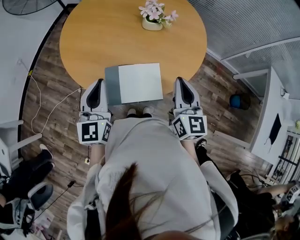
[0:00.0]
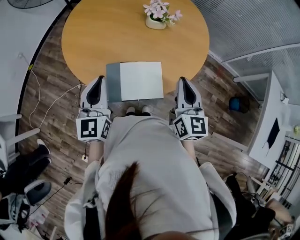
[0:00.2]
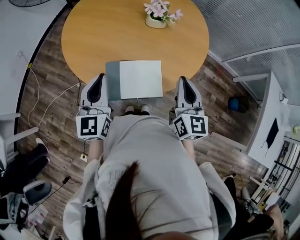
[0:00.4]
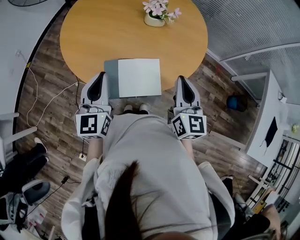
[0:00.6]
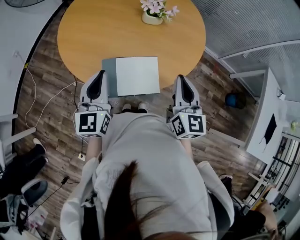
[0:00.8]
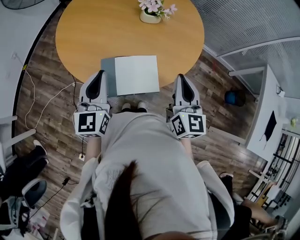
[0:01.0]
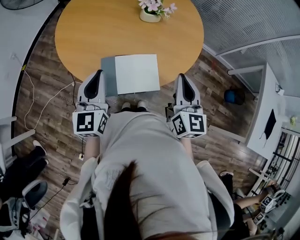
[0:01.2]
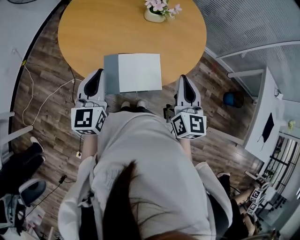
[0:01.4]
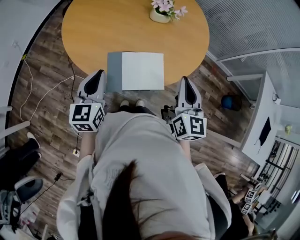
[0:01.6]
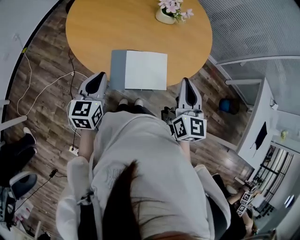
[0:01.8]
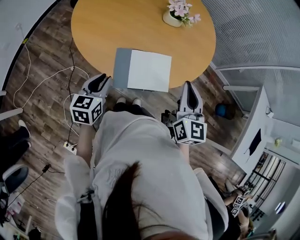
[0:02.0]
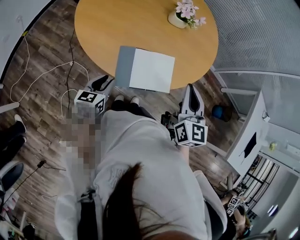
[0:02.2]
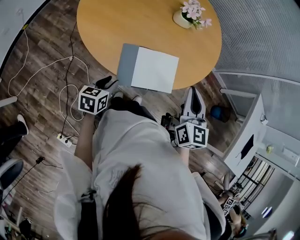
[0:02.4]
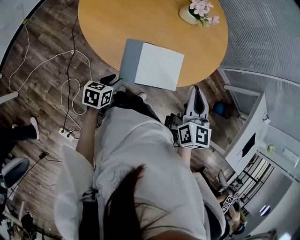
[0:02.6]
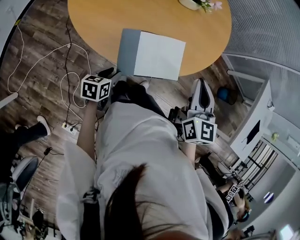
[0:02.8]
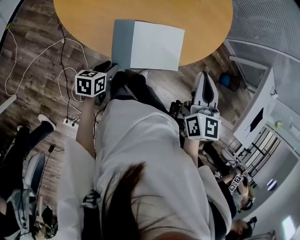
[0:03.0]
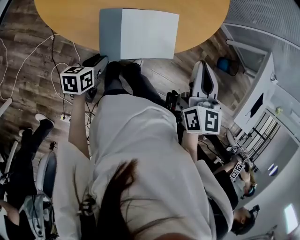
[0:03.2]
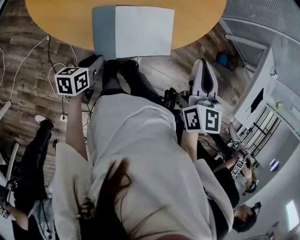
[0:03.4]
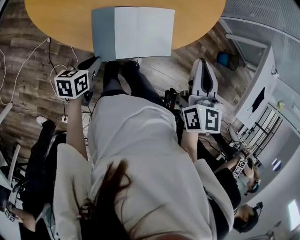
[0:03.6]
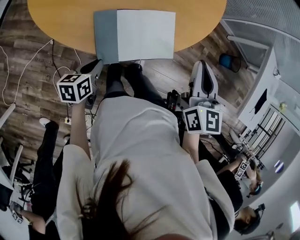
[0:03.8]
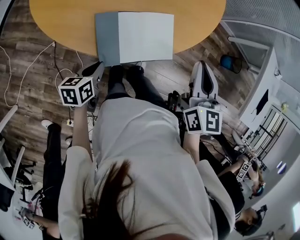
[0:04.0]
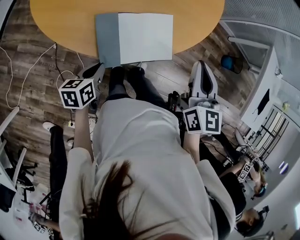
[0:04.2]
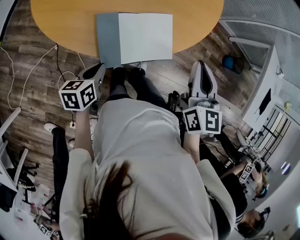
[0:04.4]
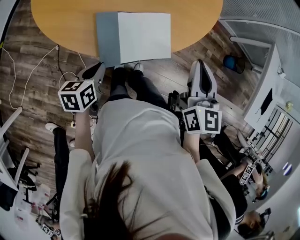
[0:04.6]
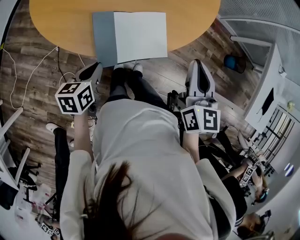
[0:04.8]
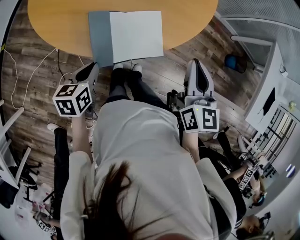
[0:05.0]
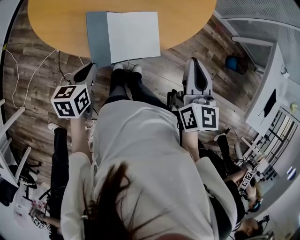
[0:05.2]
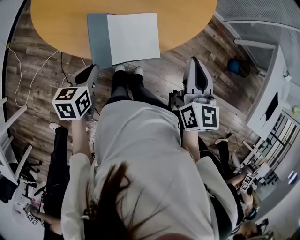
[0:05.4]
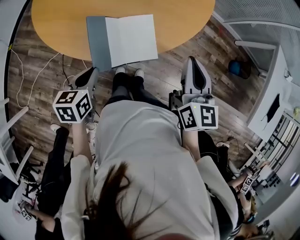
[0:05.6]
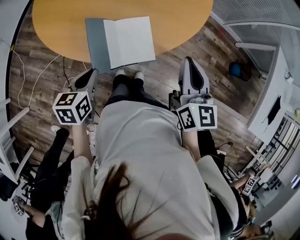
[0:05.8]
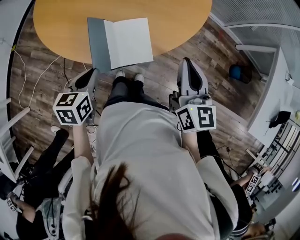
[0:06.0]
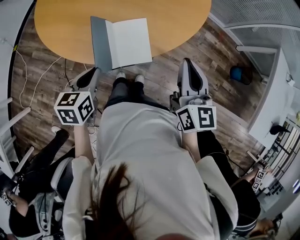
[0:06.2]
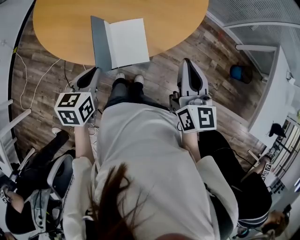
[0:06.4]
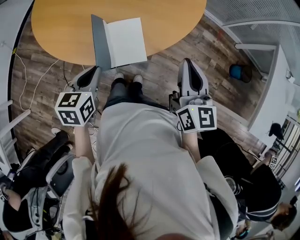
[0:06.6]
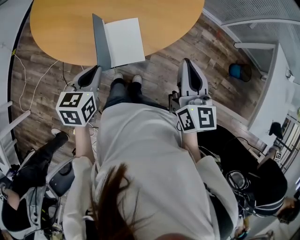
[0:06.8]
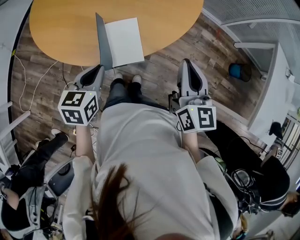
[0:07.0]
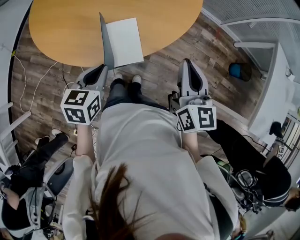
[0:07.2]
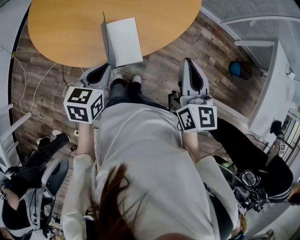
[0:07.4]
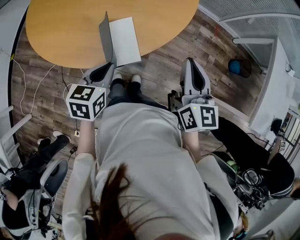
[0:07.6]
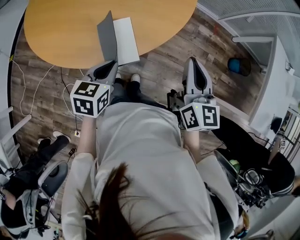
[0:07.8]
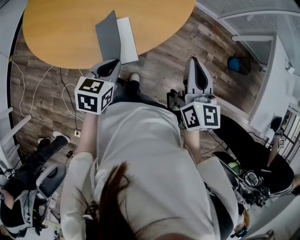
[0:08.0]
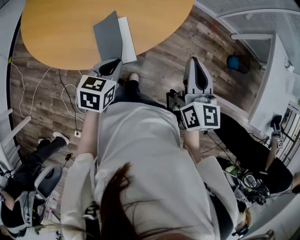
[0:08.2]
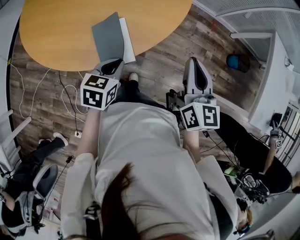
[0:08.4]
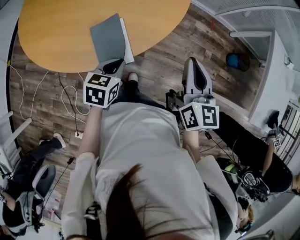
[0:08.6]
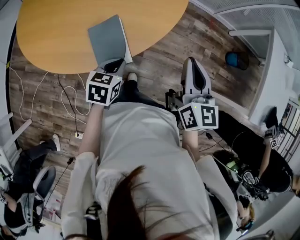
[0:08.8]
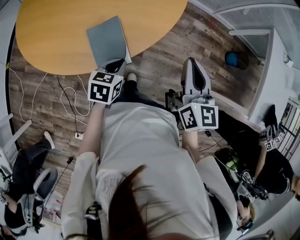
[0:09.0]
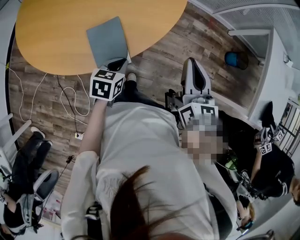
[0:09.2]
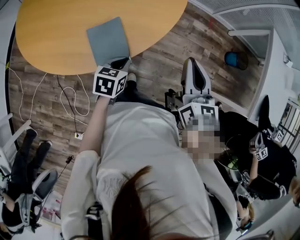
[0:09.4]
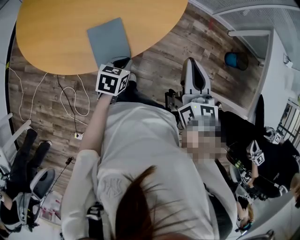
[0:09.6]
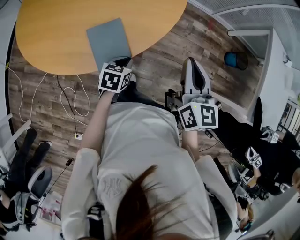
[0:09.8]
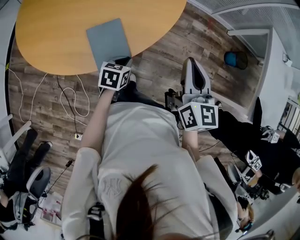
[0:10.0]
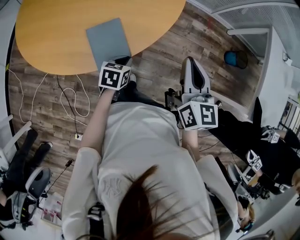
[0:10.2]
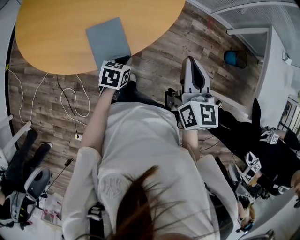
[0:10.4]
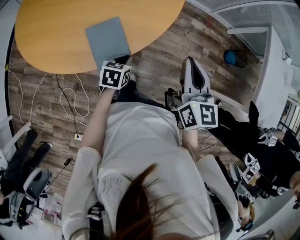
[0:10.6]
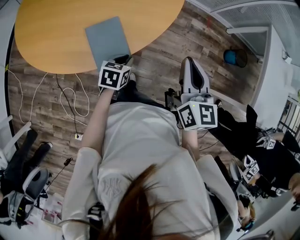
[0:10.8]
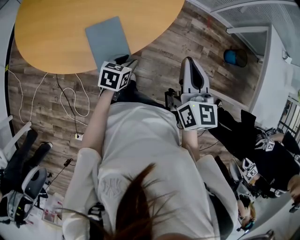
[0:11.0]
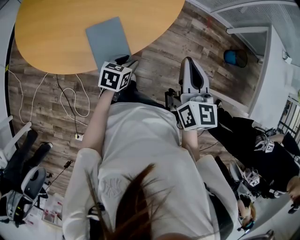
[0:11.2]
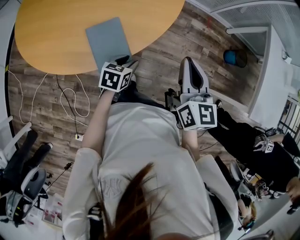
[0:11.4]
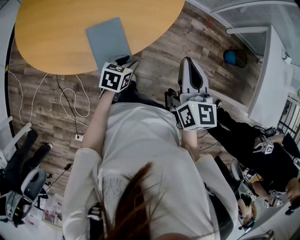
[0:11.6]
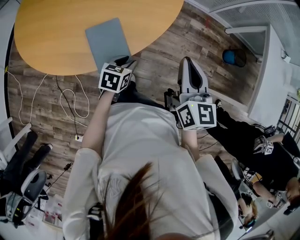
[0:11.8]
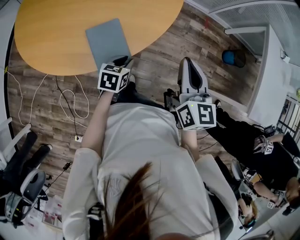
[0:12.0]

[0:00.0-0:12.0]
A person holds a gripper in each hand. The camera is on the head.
0:00.0 to 0:01.6: The left gripper shifts some 5 cm downward.
0:01.6 to 0:03.0: The left gripper shifts about 25 cm downward, rotates roughly 50 degrees, and opens up, while the right gripper shifts approximately 5 cm downward.
0:03.0 to 0:04.4: The left gripper goes roughly 5 cm upward, and closes.
0:04.4 to 0:06.0: The right gripper heads to the right, covering some 10 cm, while the left gripper travels upward and to the right by about 10 cm.
0:06.0 to 0:07.6: The left gripper shifts roughly 10 cm to the right. The right gripper shifts approximately 5 cm to the right.
0:07.6 to 0:09.0: The left gripper is displaced downward and to the right by some 10 cm.
0:09.0 to 0:10.4: The left gripper shifts approximately 5 cm downward.
0:10.4 to 0:12.0: There are only small adjustments of the grippers.

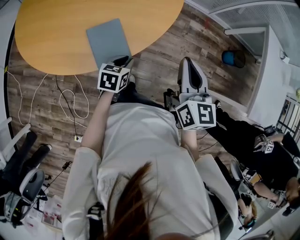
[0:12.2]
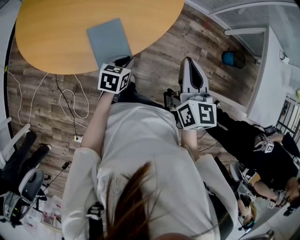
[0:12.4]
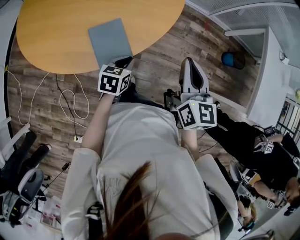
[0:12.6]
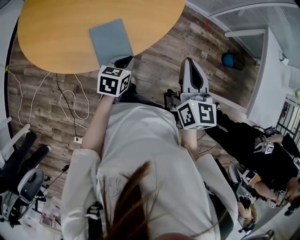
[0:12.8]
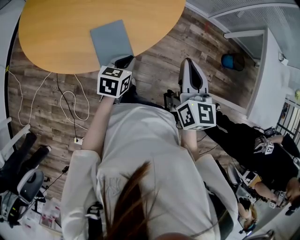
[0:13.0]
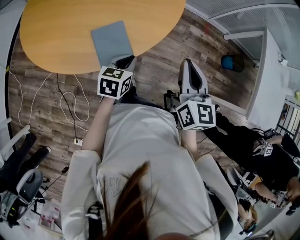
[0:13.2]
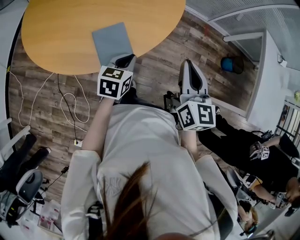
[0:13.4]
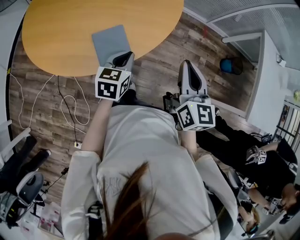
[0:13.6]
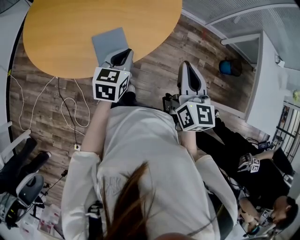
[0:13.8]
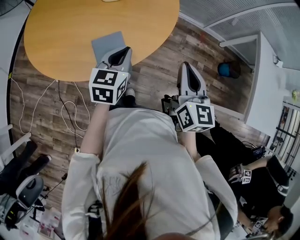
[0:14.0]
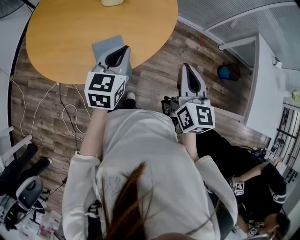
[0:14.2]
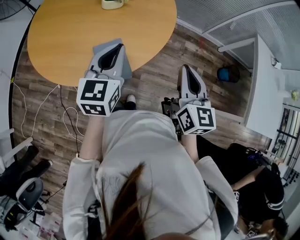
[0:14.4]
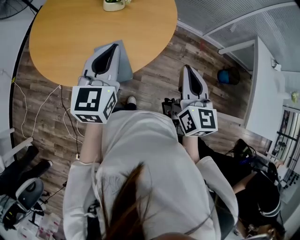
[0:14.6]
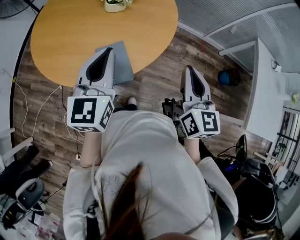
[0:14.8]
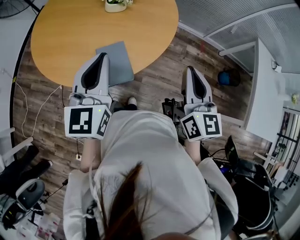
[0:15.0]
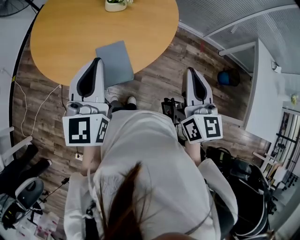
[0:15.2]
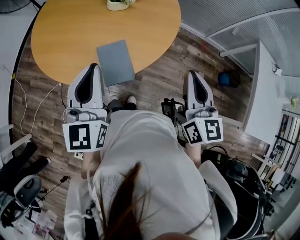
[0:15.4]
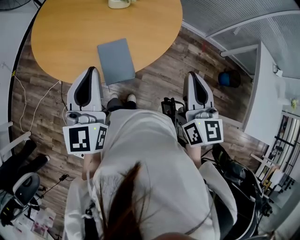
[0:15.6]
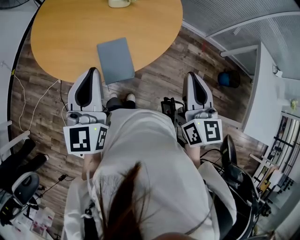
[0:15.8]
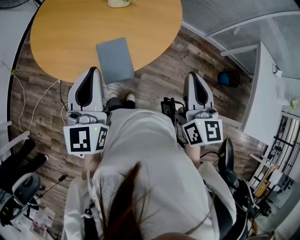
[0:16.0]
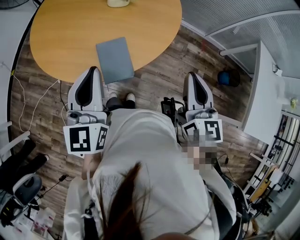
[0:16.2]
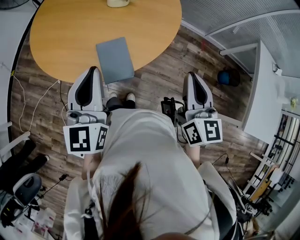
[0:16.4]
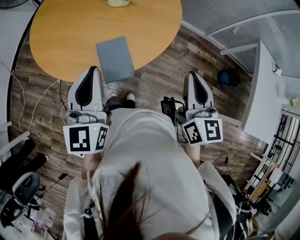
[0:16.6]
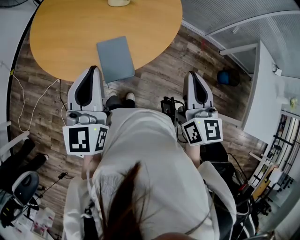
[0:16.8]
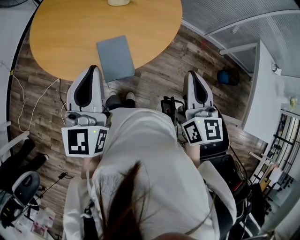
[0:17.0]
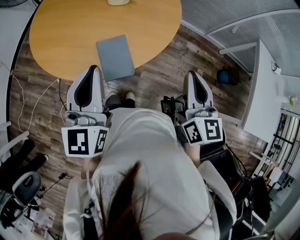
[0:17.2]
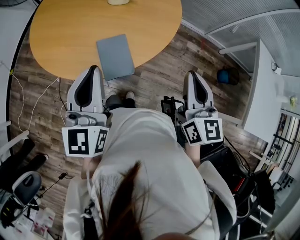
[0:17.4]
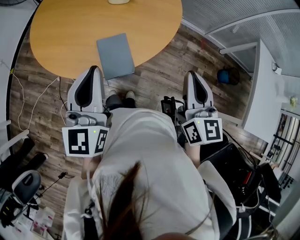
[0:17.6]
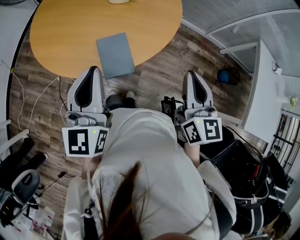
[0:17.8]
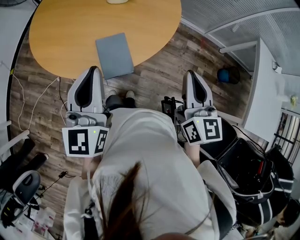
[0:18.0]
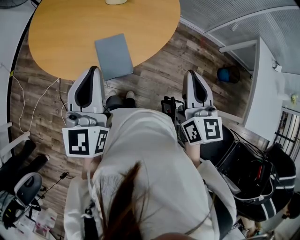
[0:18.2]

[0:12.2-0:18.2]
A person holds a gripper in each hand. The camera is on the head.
0:12.2 to 0:13.8: The left gripper goes about 15 cm upward, and changes its angle by approximately 20 degrees.
0:13.8 to 0:15.2: The left gripper is displaced upward and to the left by approximately 20 cm, and swivels some 30 degrees. Meanwhile the right gripper moves upward, approximately 10 cm.
0:15.2 to 0:18.2: The grippers stay close to where they were, moving slightly.

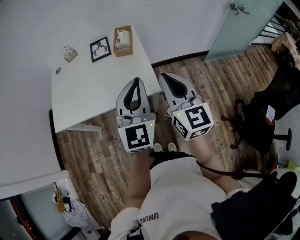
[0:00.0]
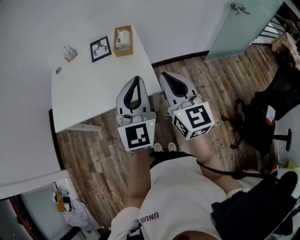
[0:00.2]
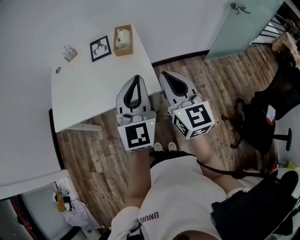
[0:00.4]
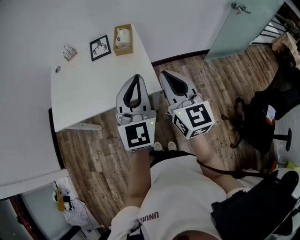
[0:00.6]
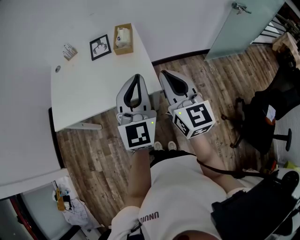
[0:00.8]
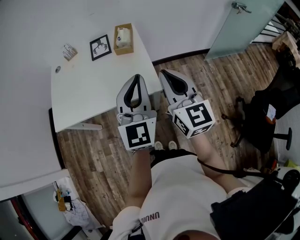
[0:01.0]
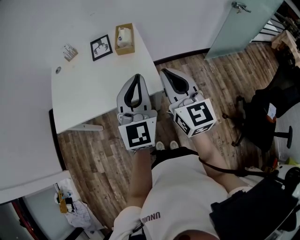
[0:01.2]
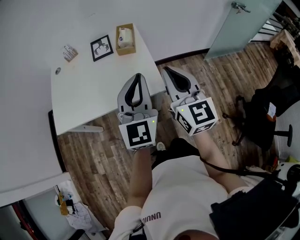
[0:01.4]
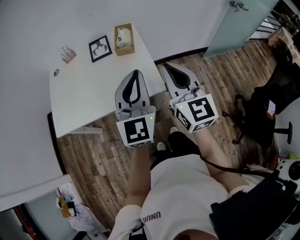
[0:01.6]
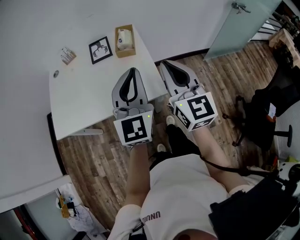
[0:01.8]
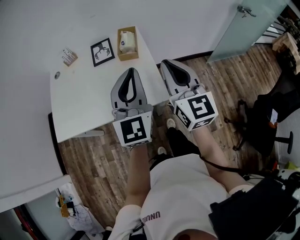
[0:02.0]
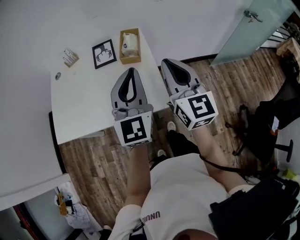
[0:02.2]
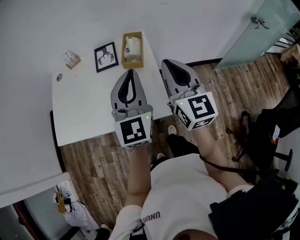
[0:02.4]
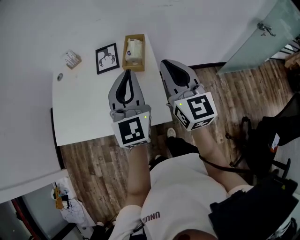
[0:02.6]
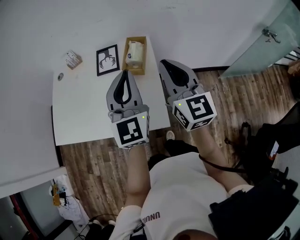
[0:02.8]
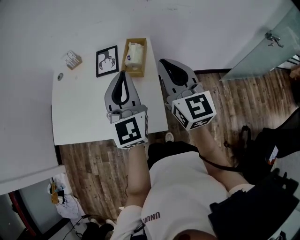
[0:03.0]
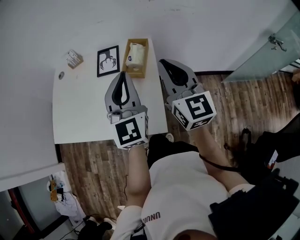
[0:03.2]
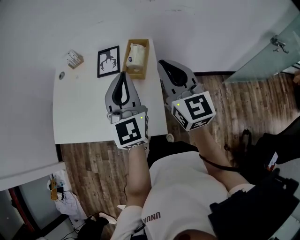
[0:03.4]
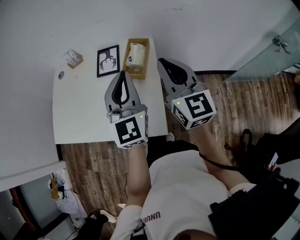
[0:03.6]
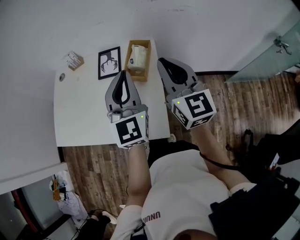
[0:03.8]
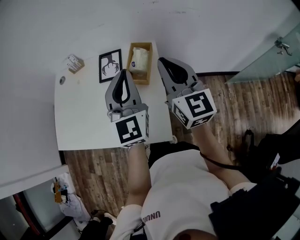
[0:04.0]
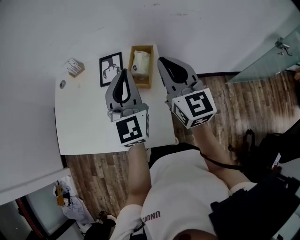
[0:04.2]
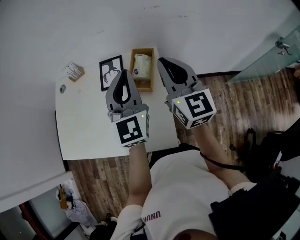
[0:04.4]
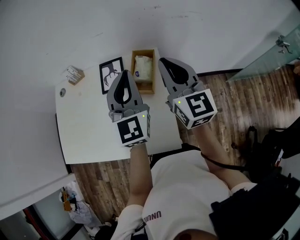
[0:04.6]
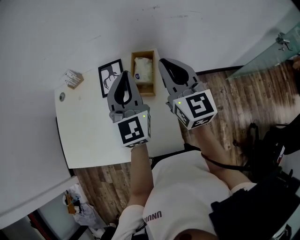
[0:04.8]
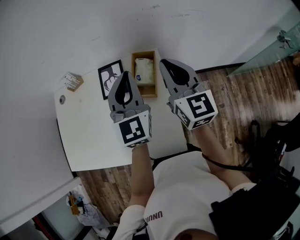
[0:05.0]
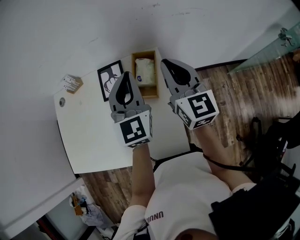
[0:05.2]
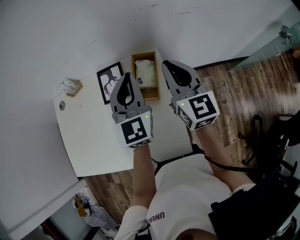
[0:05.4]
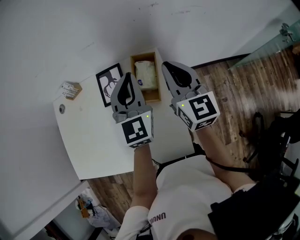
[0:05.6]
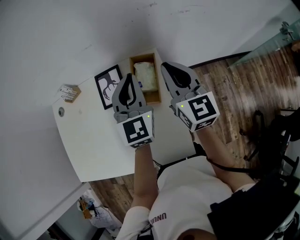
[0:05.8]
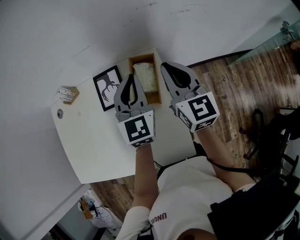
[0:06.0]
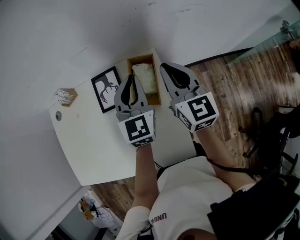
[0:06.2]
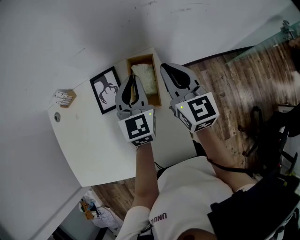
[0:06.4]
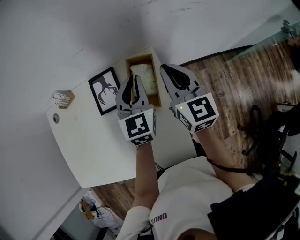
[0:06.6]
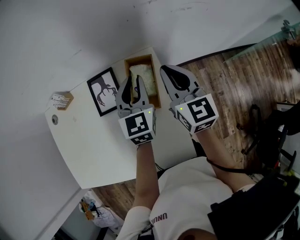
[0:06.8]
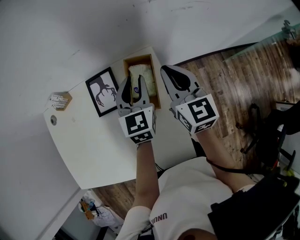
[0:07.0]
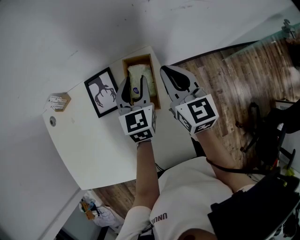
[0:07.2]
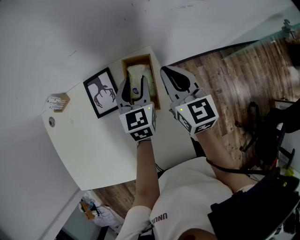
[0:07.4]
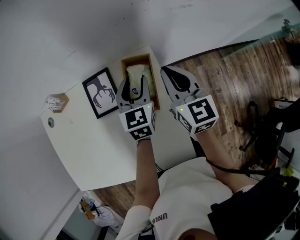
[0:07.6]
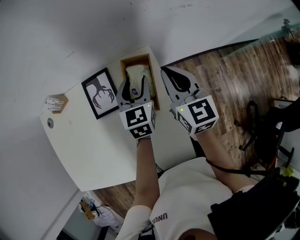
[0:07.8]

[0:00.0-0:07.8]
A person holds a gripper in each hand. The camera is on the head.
0:00.0 to 0:01.6: The grippers move only a little.
0:01.6 to 0:03.2: The grippers both shift forward by about 20 cm. The left gripper swivels approximately 20 degrees.
0:03.2 to 0:04.6: Both grippers move forward, some 10 cm.
0:04.6 to 0:06.2: The two grippers go some 15 cm forward and downward.
0:06.2 to 0:07.8: The right gripper heads downward, covering approximately 5 cm; the left gripper moves downward, some 10 cm, and opens up.
